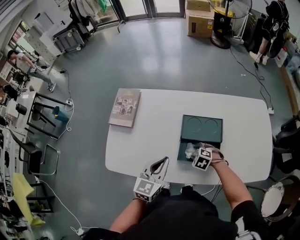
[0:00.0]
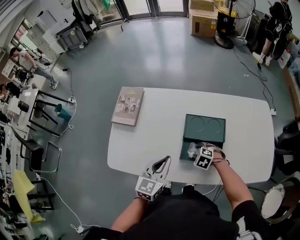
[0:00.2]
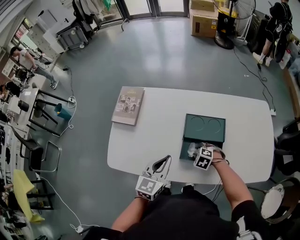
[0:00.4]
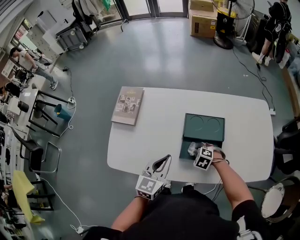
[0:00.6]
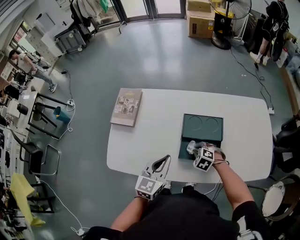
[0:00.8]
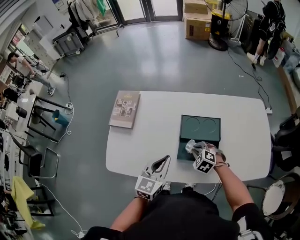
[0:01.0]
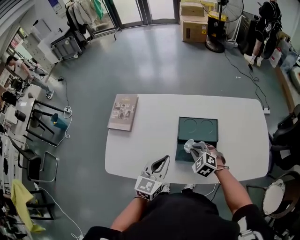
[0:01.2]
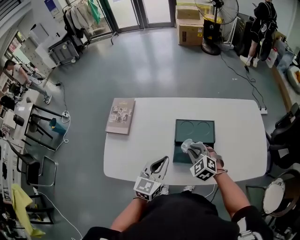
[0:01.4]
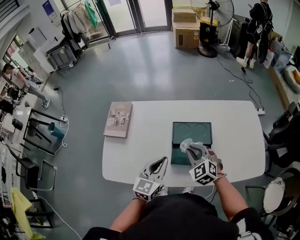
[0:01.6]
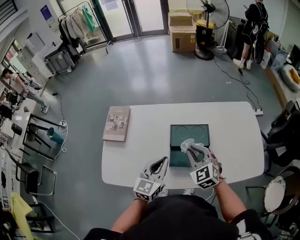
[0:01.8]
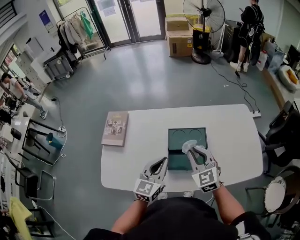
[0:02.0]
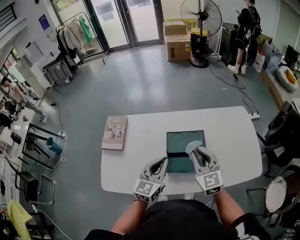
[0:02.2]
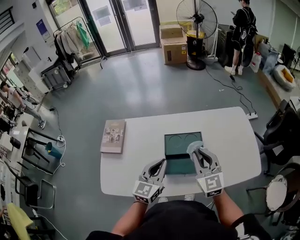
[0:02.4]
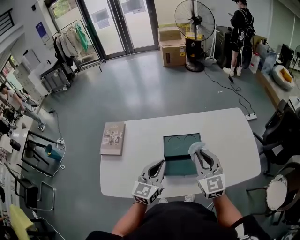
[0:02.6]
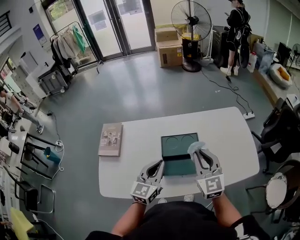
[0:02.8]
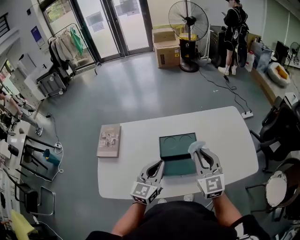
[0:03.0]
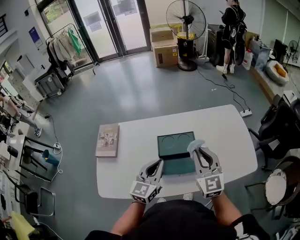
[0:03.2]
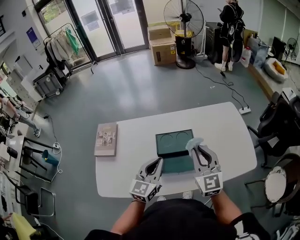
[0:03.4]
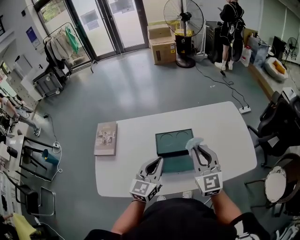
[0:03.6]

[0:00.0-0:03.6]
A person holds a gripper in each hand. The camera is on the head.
0:00.0 to 0:01.8: The right gripper is displaced upward by roughly 25 cm, angles its fingers upward, by some 40 degrees, and closes its fingers.
0:01.8 to 0:03.6: The left gripper travels to the right and upward by approximately 5 cm, while the right gripper goes some 15 cm upward and to the right, and swivels roughly 30 degrees.

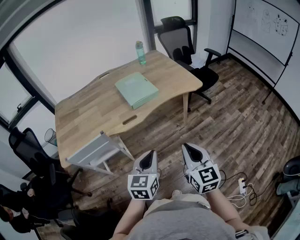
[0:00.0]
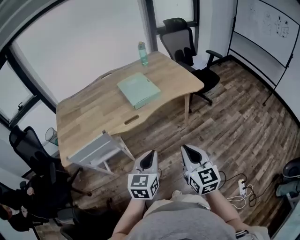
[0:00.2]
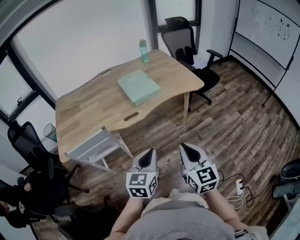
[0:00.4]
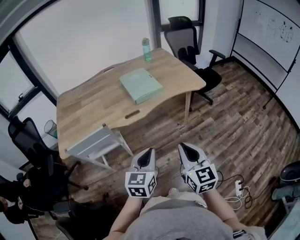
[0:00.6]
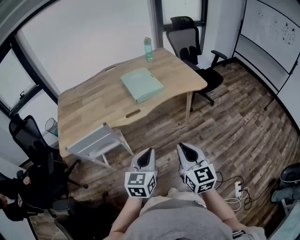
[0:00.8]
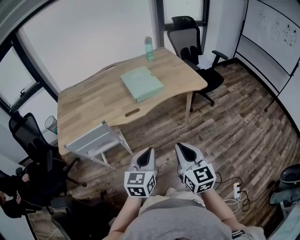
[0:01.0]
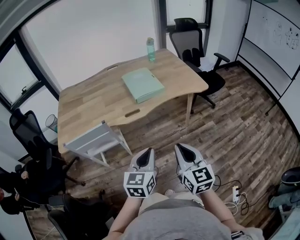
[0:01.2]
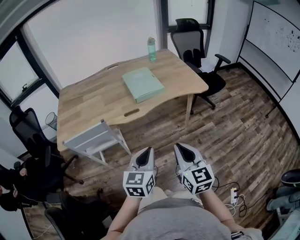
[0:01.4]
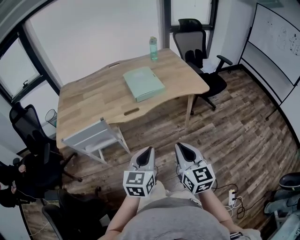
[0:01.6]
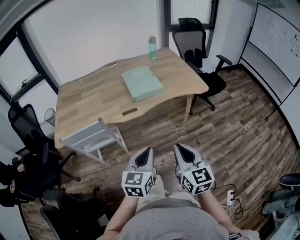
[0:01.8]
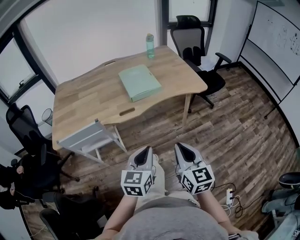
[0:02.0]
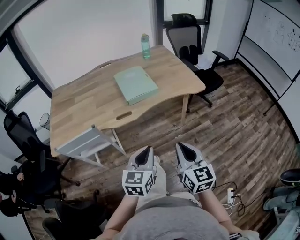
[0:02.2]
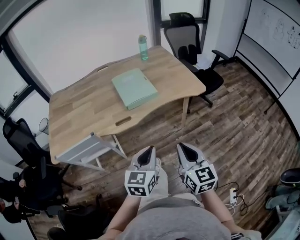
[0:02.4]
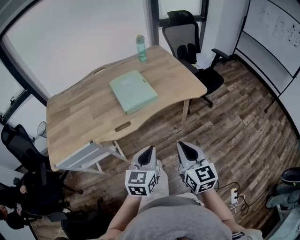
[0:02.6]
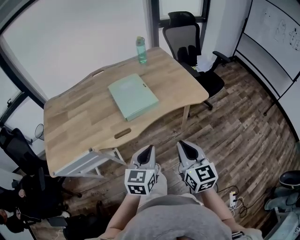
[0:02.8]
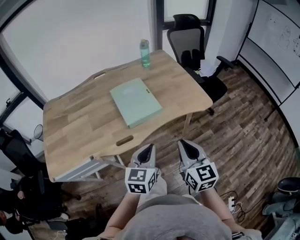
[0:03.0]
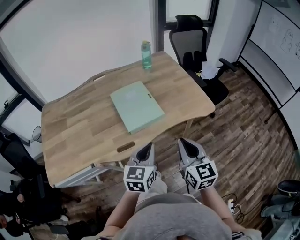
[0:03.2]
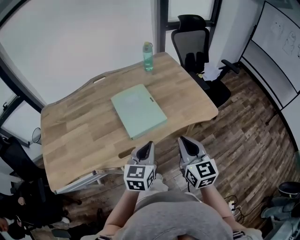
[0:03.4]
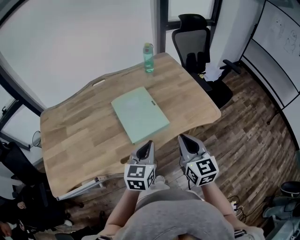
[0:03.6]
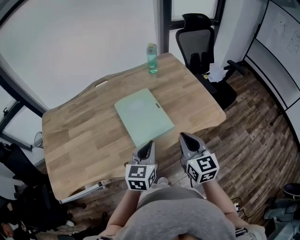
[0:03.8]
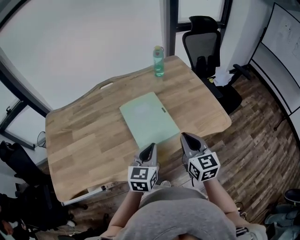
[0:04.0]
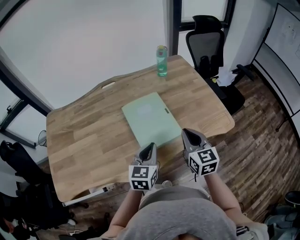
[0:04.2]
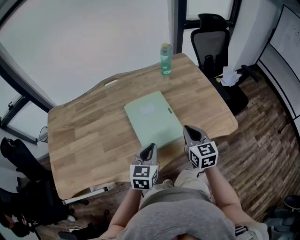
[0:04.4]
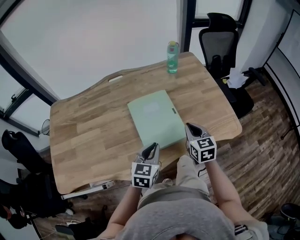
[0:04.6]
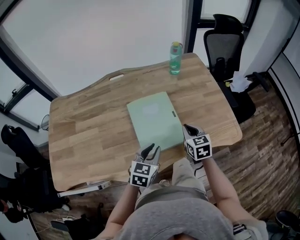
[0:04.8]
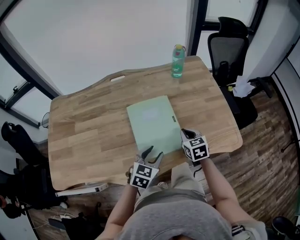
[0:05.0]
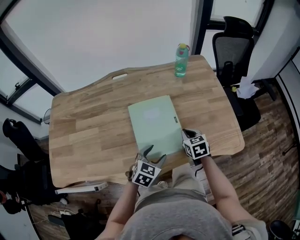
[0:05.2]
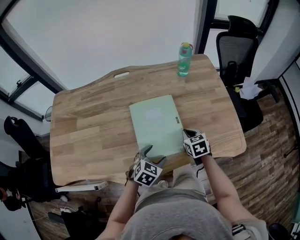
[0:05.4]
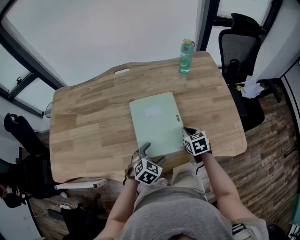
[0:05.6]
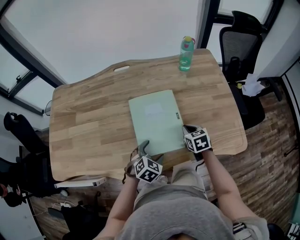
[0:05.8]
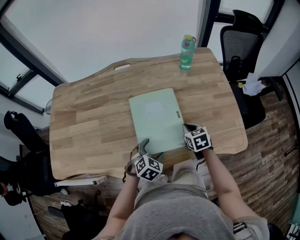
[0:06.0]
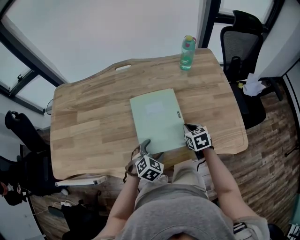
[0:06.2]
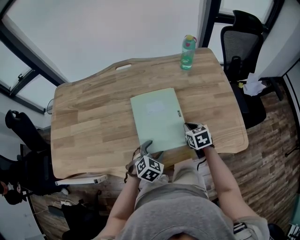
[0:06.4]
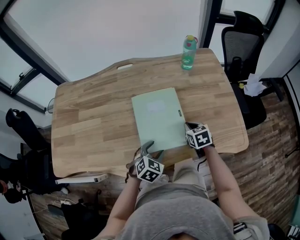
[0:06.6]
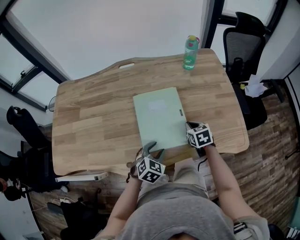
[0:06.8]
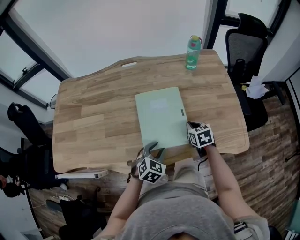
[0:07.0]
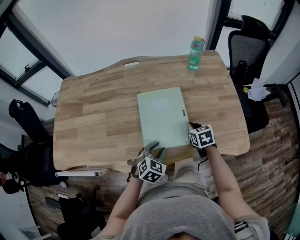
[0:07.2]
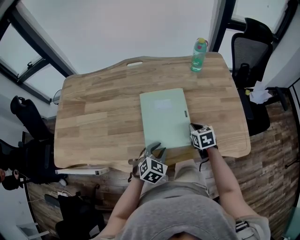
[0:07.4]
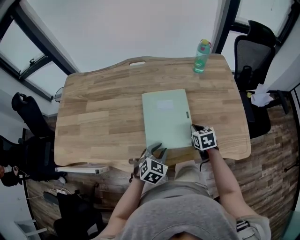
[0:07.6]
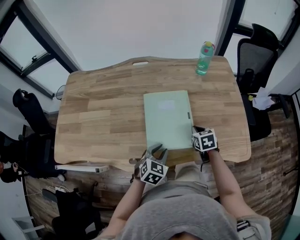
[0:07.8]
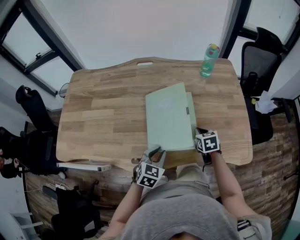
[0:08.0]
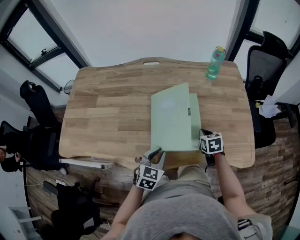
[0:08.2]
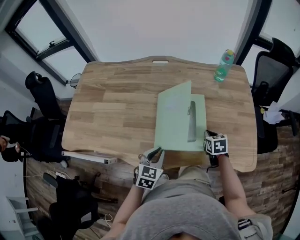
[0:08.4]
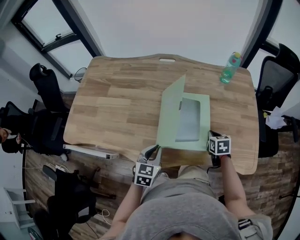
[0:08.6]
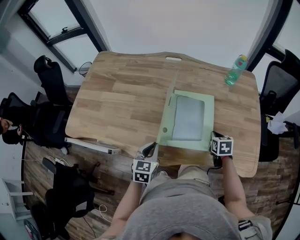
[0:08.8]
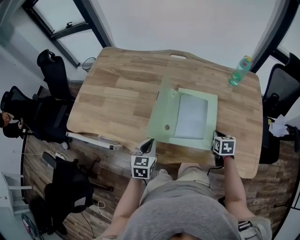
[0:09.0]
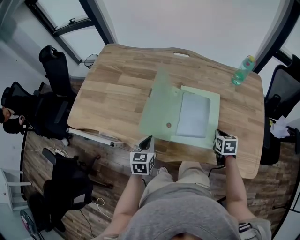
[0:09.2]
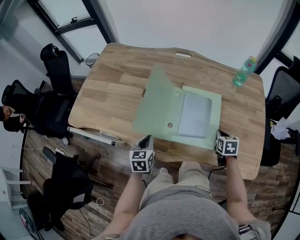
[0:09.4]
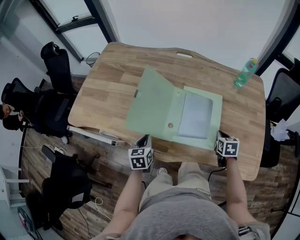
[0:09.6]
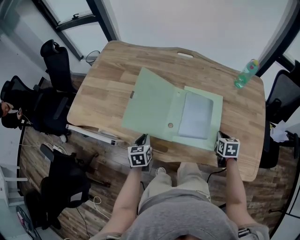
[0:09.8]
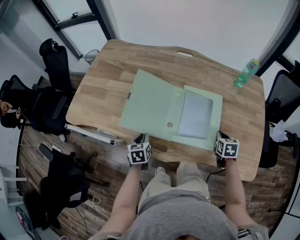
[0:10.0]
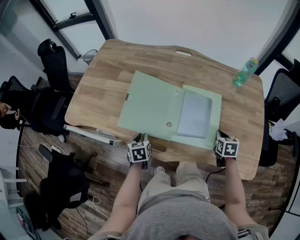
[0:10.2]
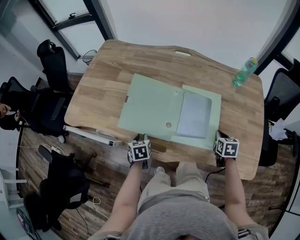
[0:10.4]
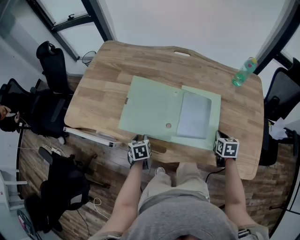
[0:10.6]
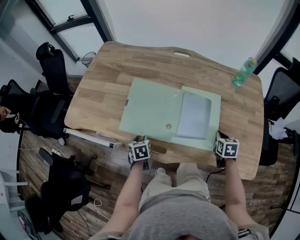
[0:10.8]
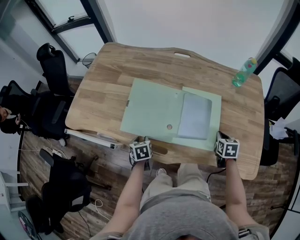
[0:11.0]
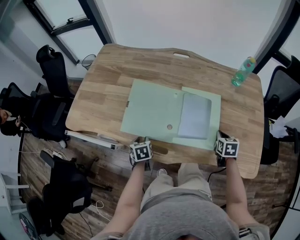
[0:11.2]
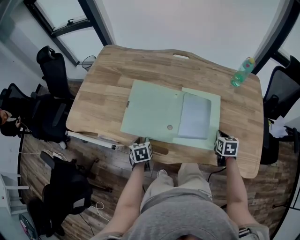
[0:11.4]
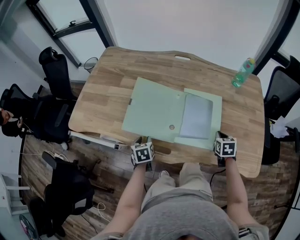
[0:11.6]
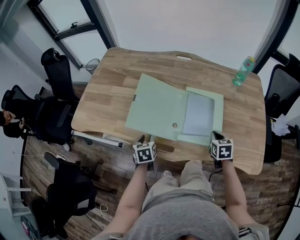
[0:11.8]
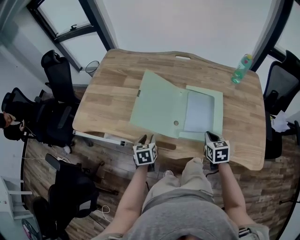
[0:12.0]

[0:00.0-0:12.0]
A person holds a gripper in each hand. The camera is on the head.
0:00.0 to 0:01.6: The grippers move only a little.
0:01.6 to 0:03.0: Both grippers move forward, approximately 25 cm.
0:03.0 to 0:04.4: The left gripper goes about 20 cm forward and to the left; the right gripper shifts approximately 30 cm forward.
0:04.4 to 0:06.0: The left gripper heads downward, covering roughly 15 cm, changes its angle by approximately 40 degrees, and opens its fingers; the right gripper heads downward and forward, covering about 20 cm, and changes its angle by approximately 30 degrees.
0:06.0 to 0:07.6: The left gripper closes its fingers.
0:07.6 to 0:09.0: The left gripper shifts approximately 15 cm to the left, and changes its angle by approximately 40 degrees.
0:09.0 to 0:10.4: The left gripper heads downward and to the left, covering about 15 cm, and rotates roughly 30 degrees.
0:10.4 to 0:12.0: The left gripper travels upward by some 5 cm; the right gripper goes roughly 10 cm to the left.

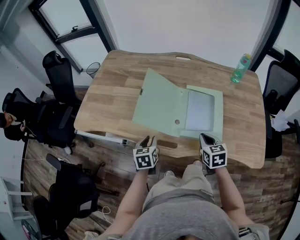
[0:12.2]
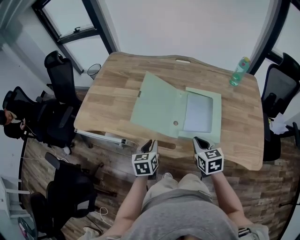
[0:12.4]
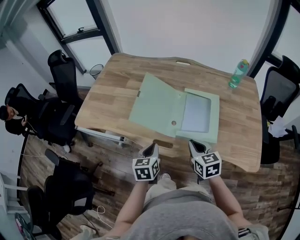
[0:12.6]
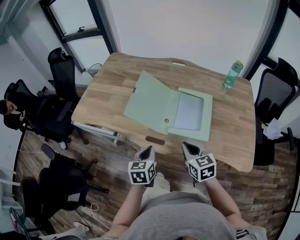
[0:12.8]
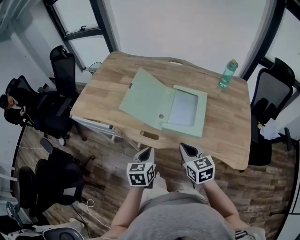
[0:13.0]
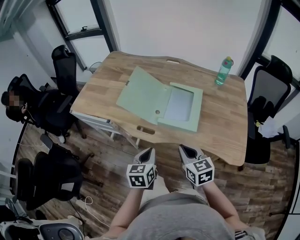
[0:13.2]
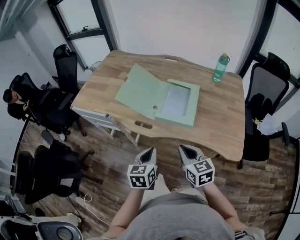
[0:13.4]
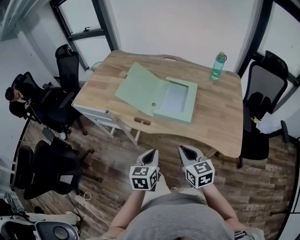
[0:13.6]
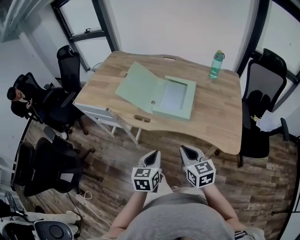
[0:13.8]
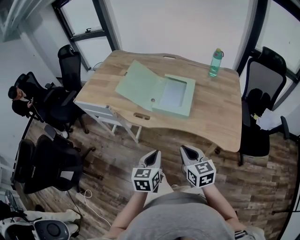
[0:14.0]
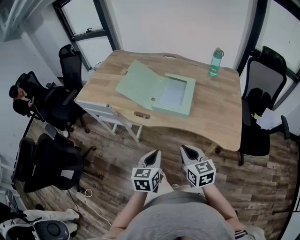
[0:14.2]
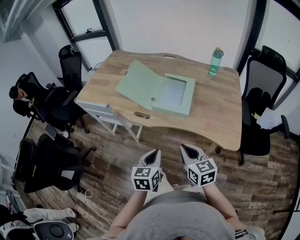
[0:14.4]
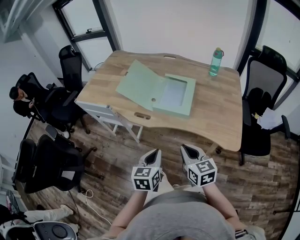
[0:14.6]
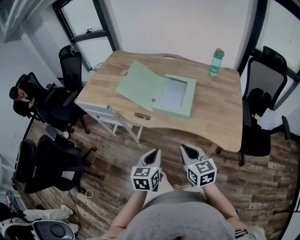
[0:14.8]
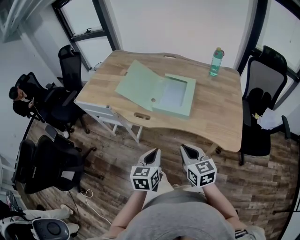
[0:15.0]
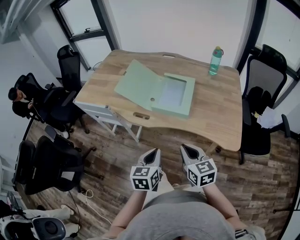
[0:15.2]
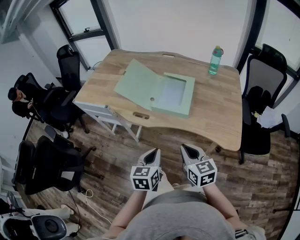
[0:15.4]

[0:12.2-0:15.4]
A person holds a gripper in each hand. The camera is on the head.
0:12.2 to 0:13.8: The right gripper travels backward by roughly 25 cm, and turns by approximately 20 degrees, while the left gripper heads backward and to the right, covering approximately 35 cm.
0:13.8 to 0:15.4: The grippers make only small movements.

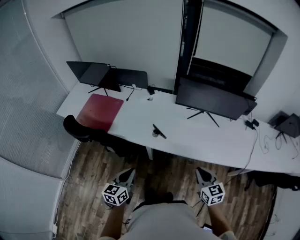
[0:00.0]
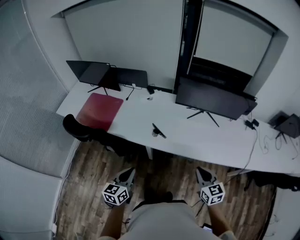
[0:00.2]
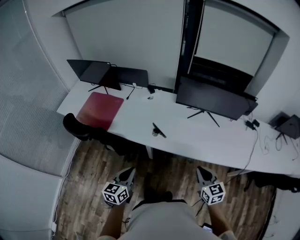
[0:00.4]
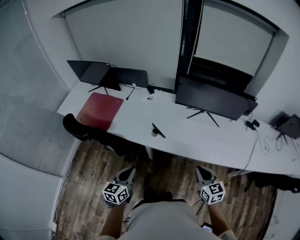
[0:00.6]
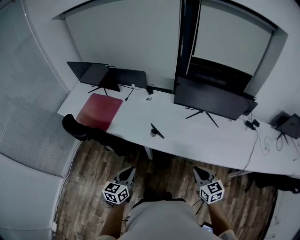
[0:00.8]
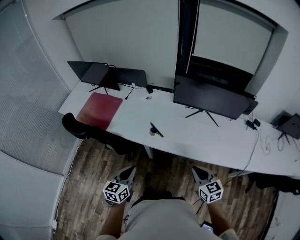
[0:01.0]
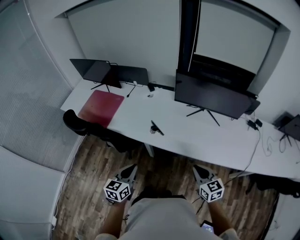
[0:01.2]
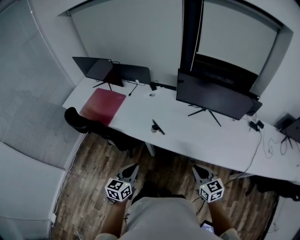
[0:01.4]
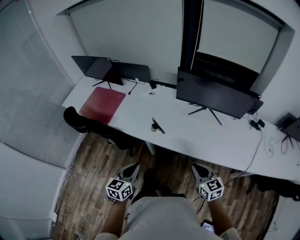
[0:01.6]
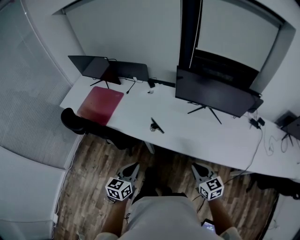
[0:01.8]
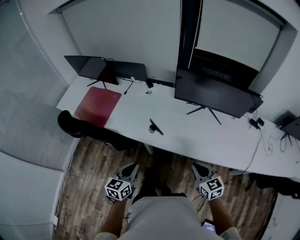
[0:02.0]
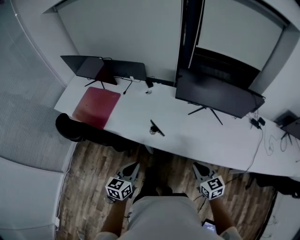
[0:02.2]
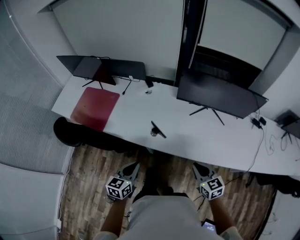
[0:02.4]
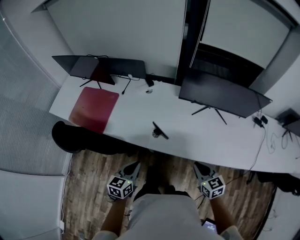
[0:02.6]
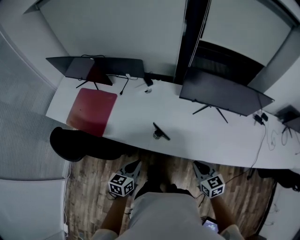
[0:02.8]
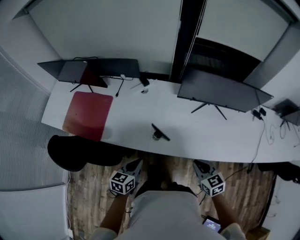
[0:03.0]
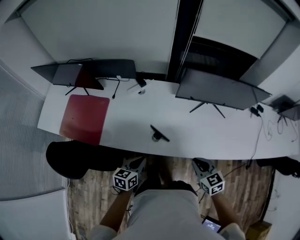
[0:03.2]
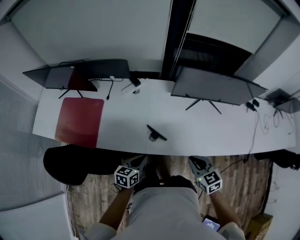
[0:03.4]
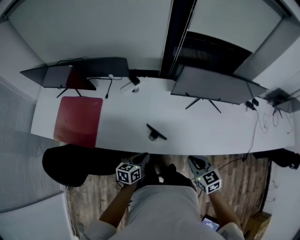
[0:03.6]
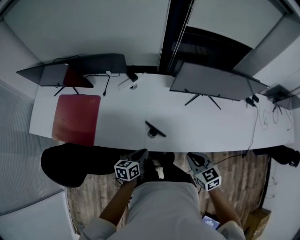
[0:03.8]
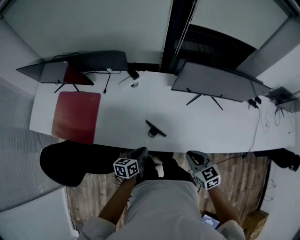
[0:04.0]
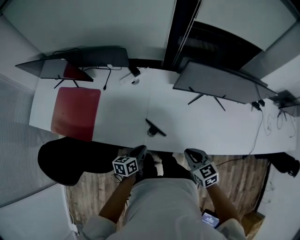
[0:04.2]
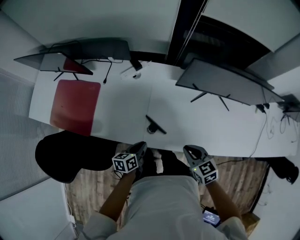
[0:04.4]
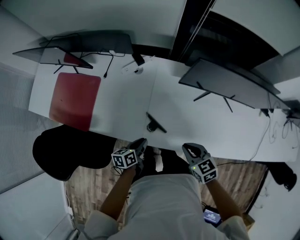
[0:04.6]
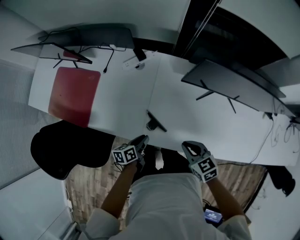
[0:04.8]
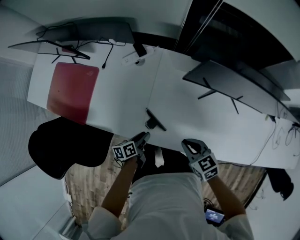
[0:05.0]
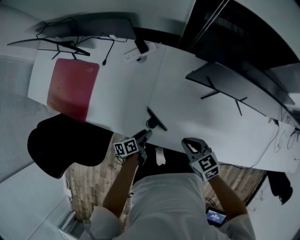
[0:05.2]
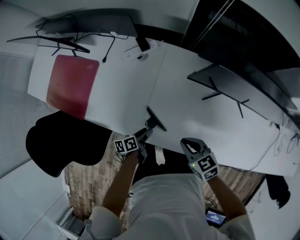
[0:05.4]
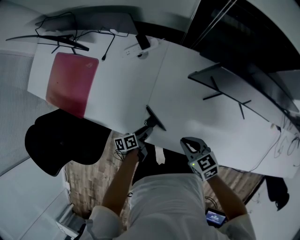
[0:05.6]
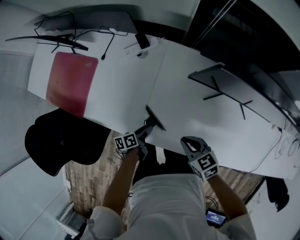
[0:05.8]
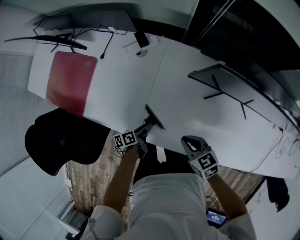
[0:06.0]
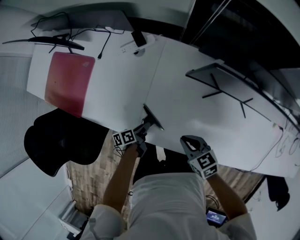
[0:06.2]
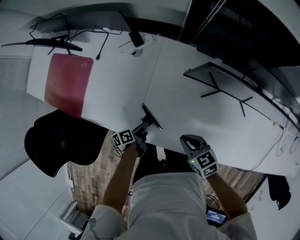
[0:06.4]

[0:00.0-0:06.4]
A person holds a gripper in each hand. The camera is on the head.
0:00.0 to 0:01.6: The left gripper shifts approximately 10 cm to the right.
0:01.6 to 0:03.2: The left gripper moves forward and downward, roughly 25 cm, and turns by about 30 degrees; the right gripper shifts roughly 20 cm forward and to the left.
0:03.2 to 0:04.8: The left gripper travels downward and forward by approximately 15 cm, and swivels about 40 degrees, while the right gripper travels forward and downward by approximately 15 cm.
0:04.8 to 0:06.4: The two grippers go roughly 10 cm downward. The left gripper turns by some 20 degrees, and opens and closes again.
